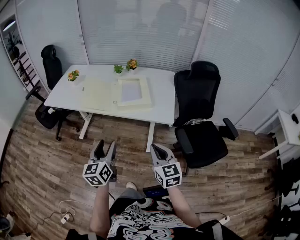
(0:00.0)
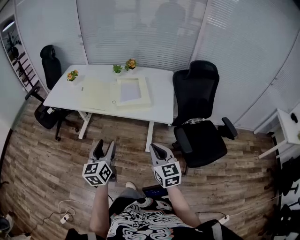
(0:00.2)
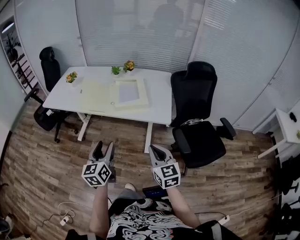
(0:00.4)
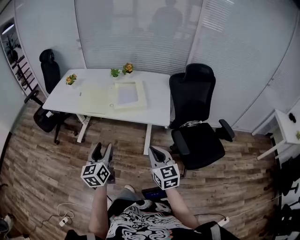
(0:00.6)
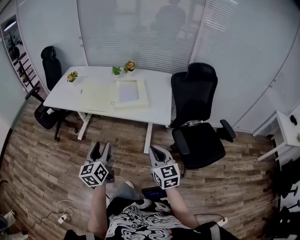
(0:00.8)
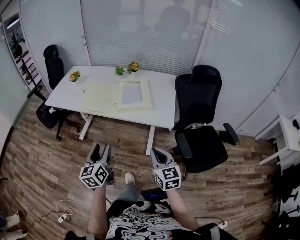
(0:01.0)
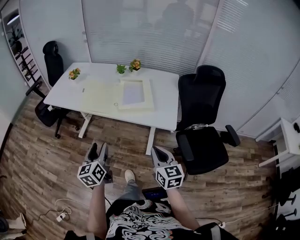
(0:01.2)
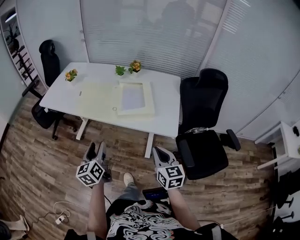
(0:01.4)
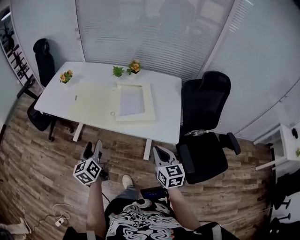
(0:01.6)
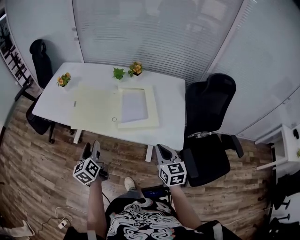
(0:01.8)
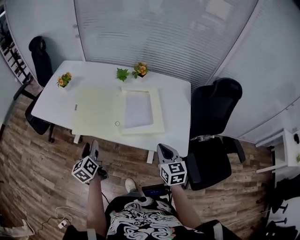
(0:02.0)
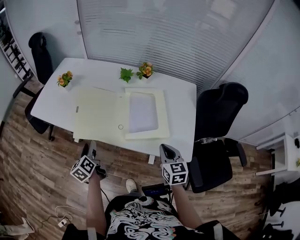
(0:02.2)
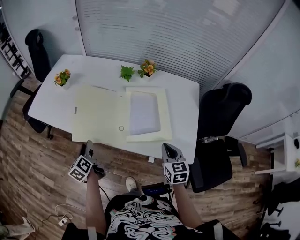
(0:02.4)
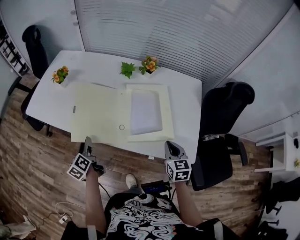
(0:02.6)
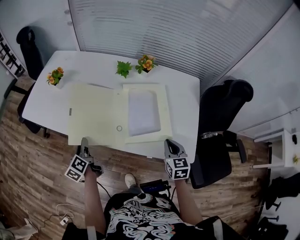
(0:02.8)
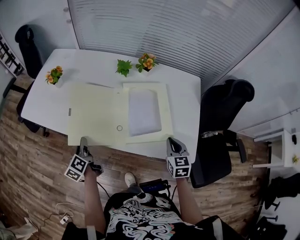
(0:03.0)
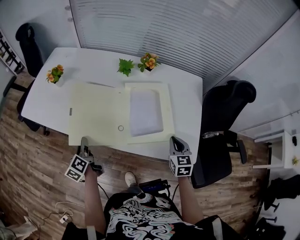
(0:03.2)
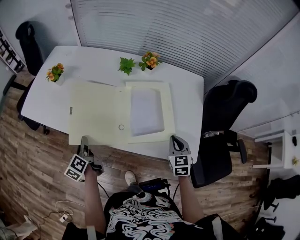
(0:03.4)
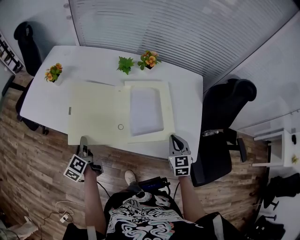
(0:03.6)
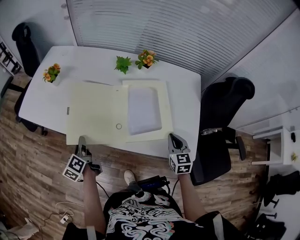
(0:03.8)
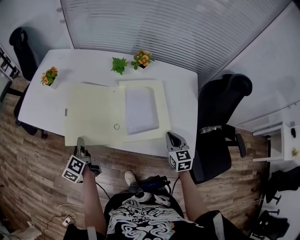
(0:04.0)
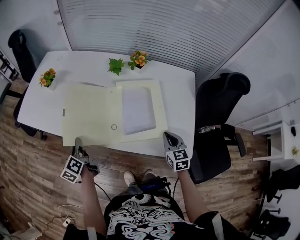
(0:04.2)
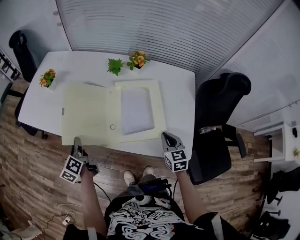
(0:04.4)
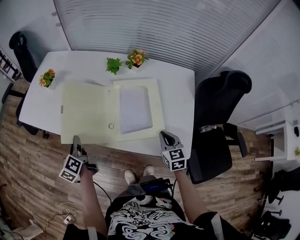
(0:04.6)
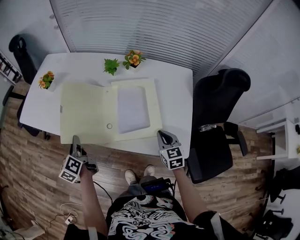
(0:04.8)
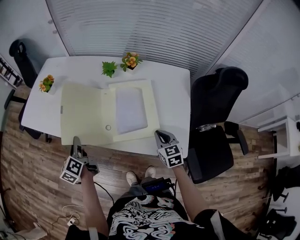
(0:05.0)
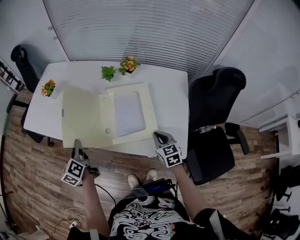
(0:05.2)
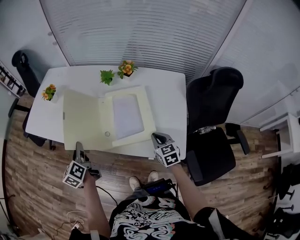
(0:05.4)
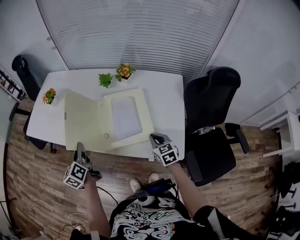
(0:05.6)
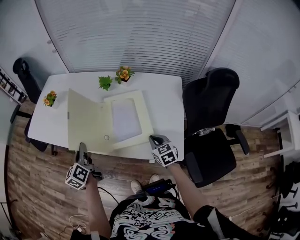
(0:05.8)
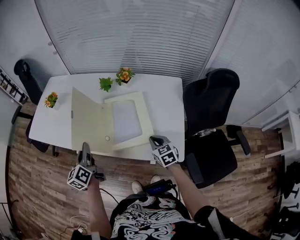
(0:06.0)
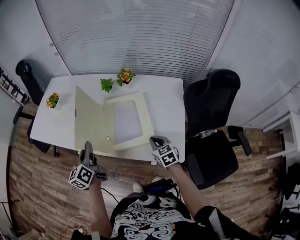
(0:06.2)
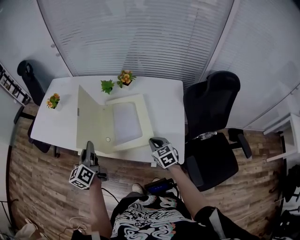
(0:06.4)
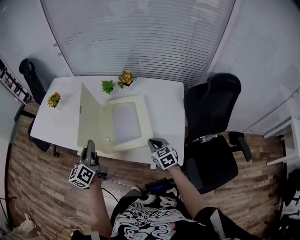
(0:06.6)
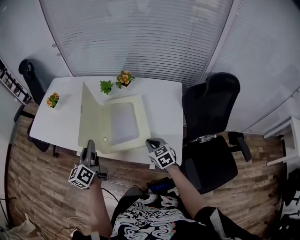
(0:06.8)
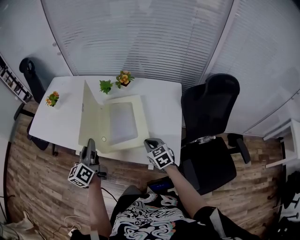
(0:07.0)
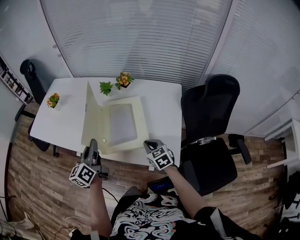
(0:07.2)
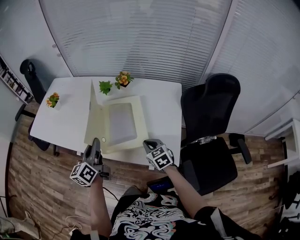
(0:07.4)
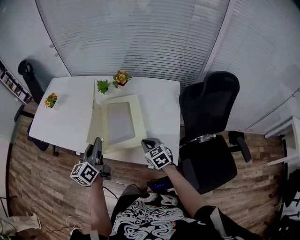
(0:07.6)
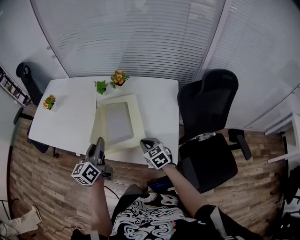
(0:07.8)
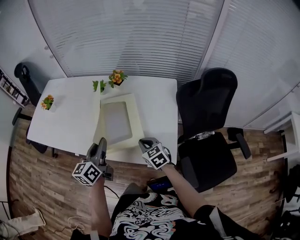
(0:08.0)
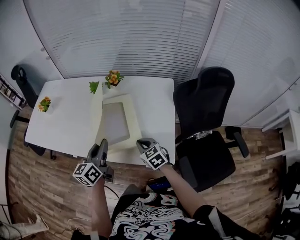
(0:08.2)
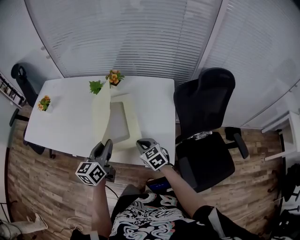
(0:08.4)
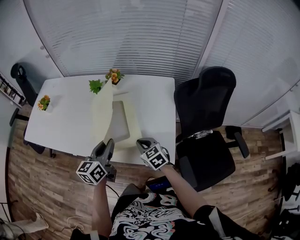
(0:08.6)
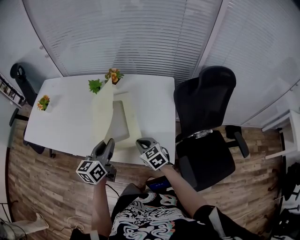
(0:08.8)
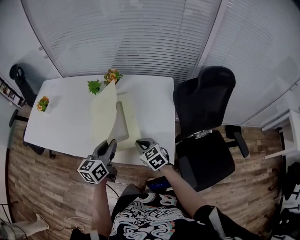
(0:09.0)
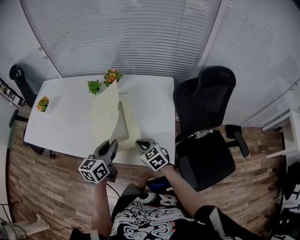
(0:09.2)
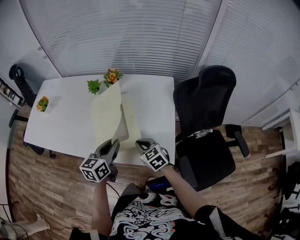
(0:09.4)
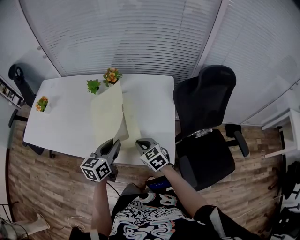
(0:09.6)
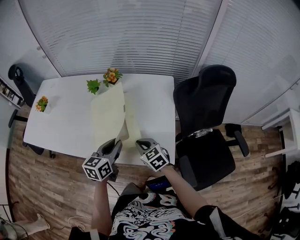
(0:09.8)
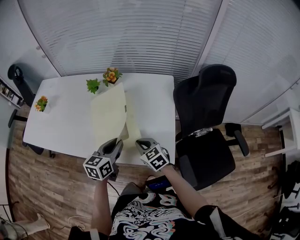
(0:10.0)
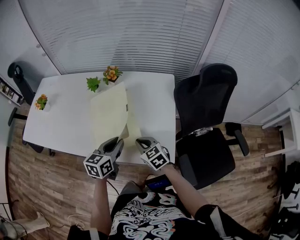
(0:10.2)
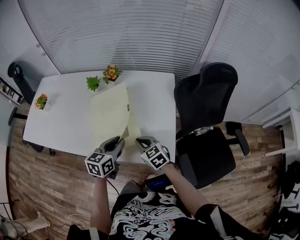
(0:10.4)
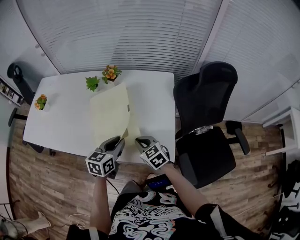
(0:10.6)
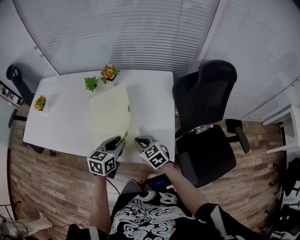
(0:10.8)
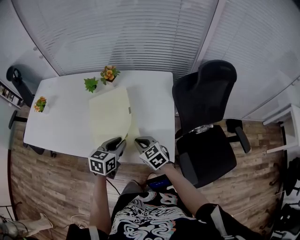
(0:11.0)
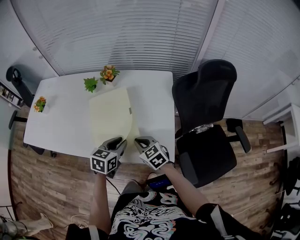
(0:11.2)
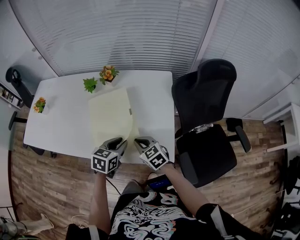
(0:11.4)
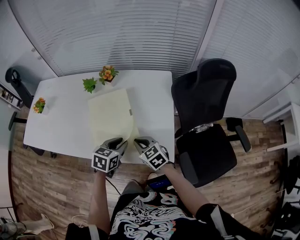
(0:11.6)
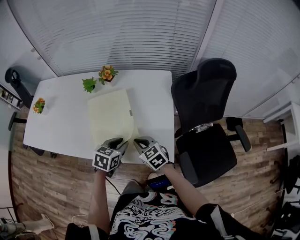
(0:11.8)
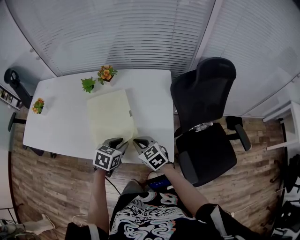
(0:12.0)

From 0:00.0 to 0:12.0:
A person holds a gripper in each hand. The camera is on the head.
From 0:00.0 to 0:01.6: Both grippers move forward, approximately 15 cm.
From 0:01.6 to 0:03.0: The right gripper shifts roughly 20 cm forward and downward. Meanwhile the left gripper heads forward, downward and to the left, covering about 25 cm, swivels roughly 30 degrees, and closes.
From 0:03.0 to 0:04.4: There are only small adjustments of the grippers.
From 0:04.4 to 0:06.0: The left gripper shifts roughly 15 cm upward and to the right.
From 0:06.0 to 0:07.6: The left gripper goes some 10 cm to the right.
From 0:07.6 to 0:09.0: The left gripper is displaced to the right by some 10 cm, and swivels some 20 degrees.
From 0:09.0 to 0:10.4: The left gripper moves roughly 5 cm.
From 0:10.4 to 0:12.0: The left gripper changes place by approximately 5 cm, and turns by approximately 30 degrees.

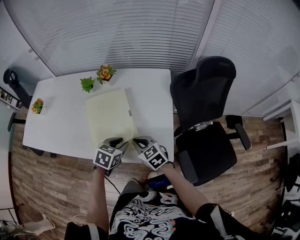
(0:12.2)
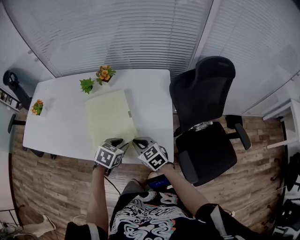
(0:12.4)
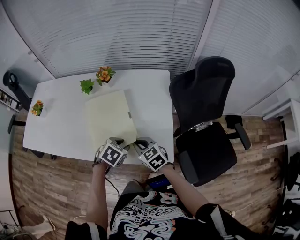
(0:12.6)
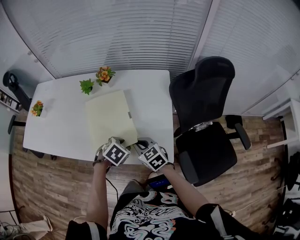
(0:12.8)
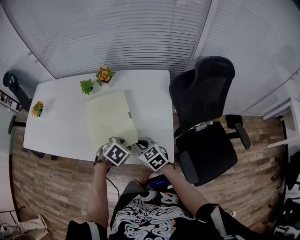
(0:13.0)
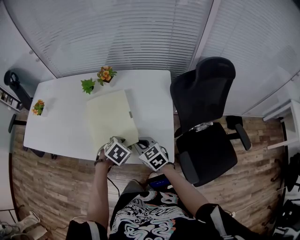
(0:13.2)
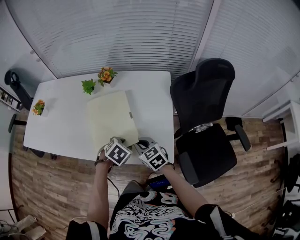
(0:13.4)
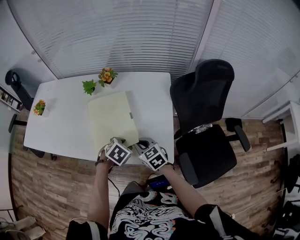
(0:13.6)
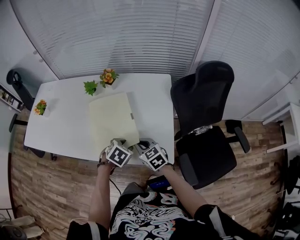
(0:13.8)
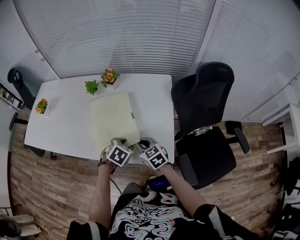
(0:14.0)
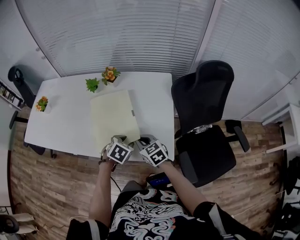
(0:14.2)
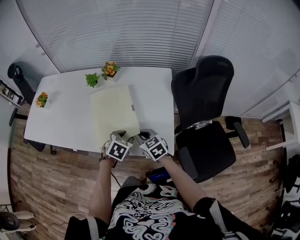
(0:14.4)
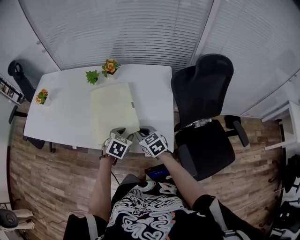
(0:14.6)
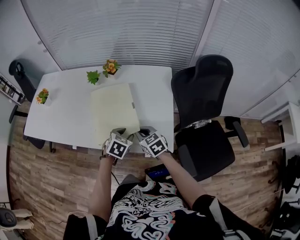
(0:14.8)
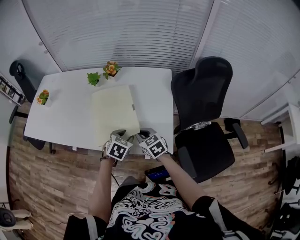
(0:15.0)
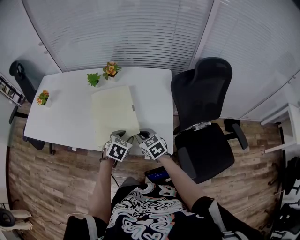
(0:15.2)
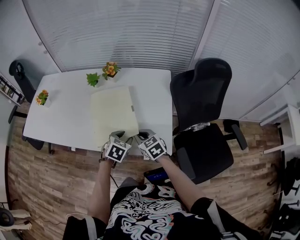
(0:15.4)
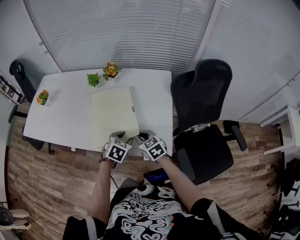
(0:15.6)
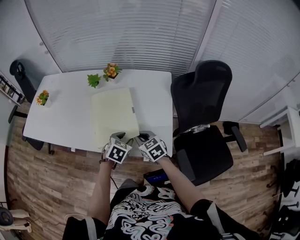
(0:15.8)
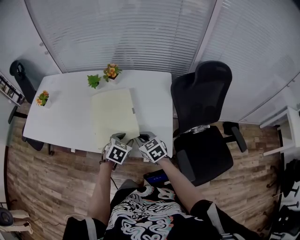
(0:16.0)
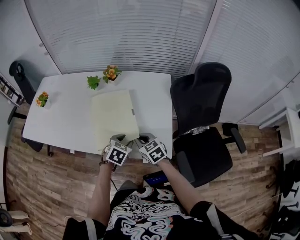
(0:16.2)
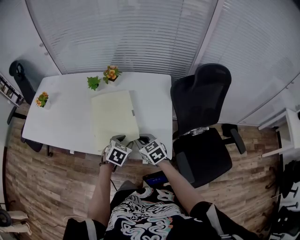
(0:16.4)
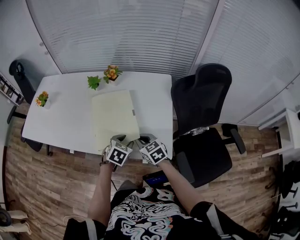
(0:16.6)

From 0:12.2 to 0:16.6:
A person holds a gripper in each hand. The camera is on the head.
From 0:12.2 to 0:13.6: The left gripper turns by about 20 degrees.
From 0:13.6 to 0:15.2: The grippers move only a little.
From 0:15.2 to 0:16.6: Neither gripper changes place.

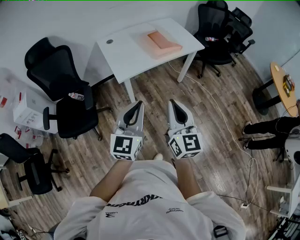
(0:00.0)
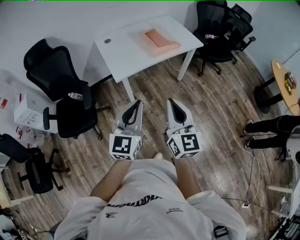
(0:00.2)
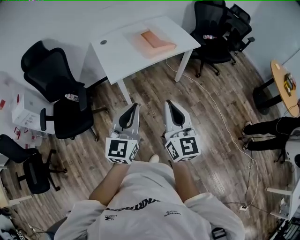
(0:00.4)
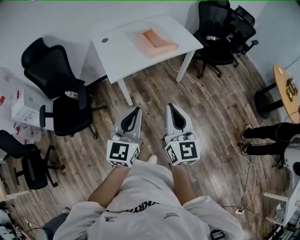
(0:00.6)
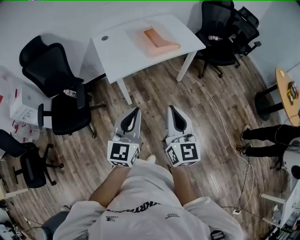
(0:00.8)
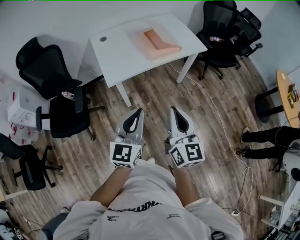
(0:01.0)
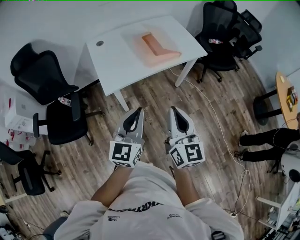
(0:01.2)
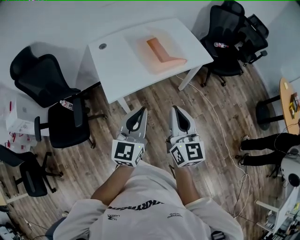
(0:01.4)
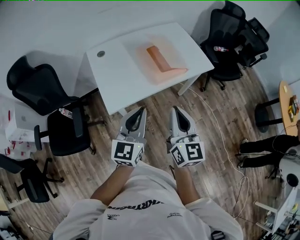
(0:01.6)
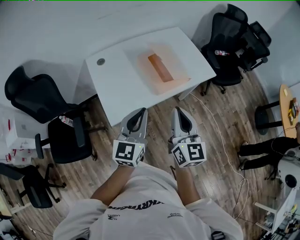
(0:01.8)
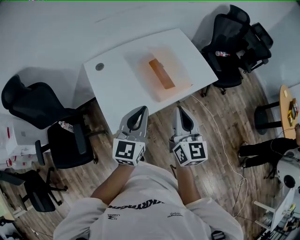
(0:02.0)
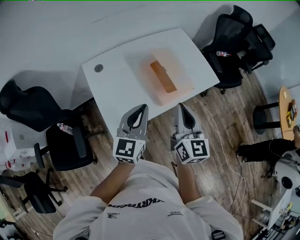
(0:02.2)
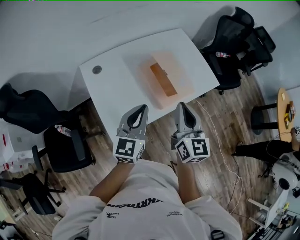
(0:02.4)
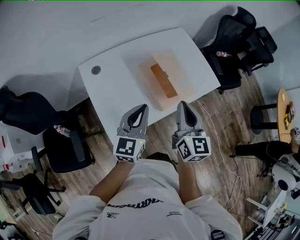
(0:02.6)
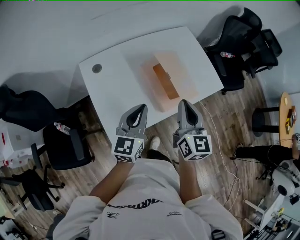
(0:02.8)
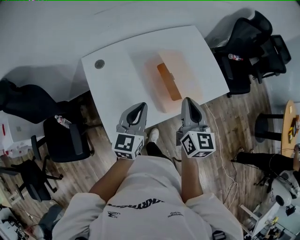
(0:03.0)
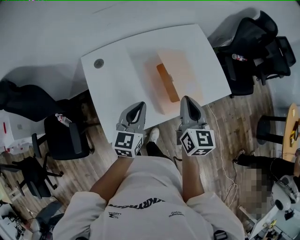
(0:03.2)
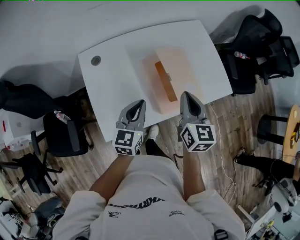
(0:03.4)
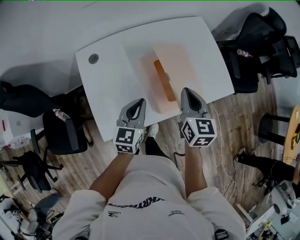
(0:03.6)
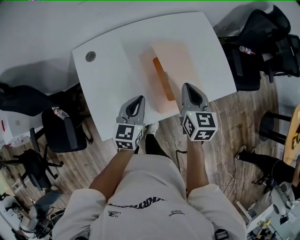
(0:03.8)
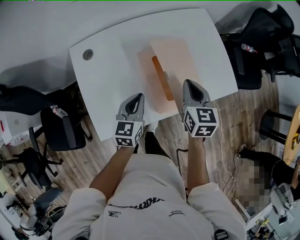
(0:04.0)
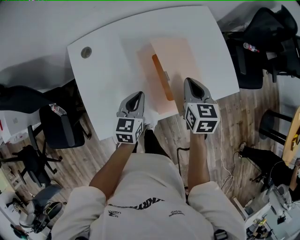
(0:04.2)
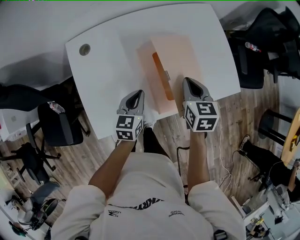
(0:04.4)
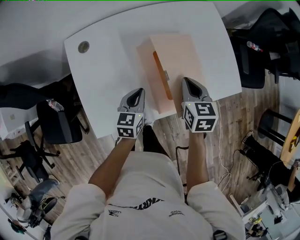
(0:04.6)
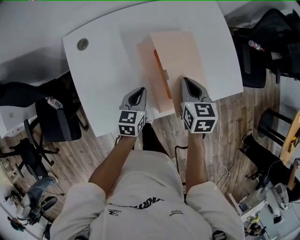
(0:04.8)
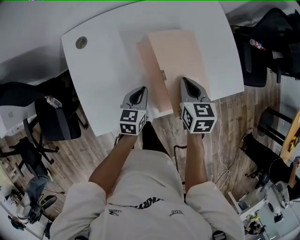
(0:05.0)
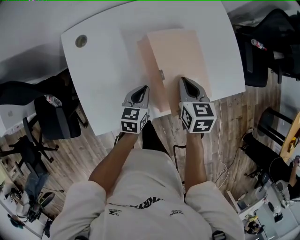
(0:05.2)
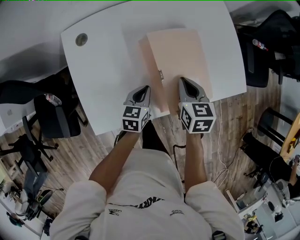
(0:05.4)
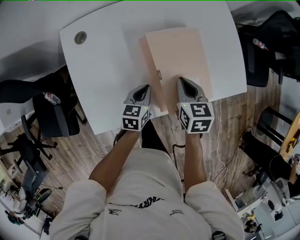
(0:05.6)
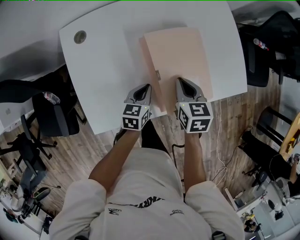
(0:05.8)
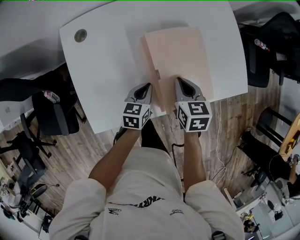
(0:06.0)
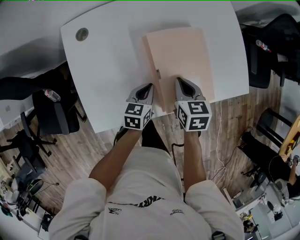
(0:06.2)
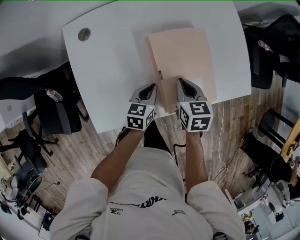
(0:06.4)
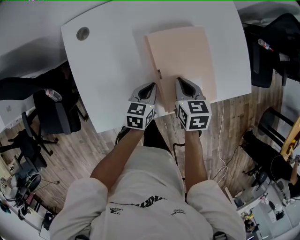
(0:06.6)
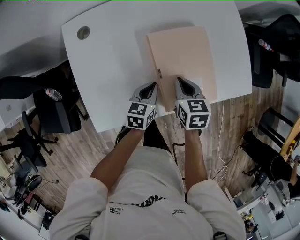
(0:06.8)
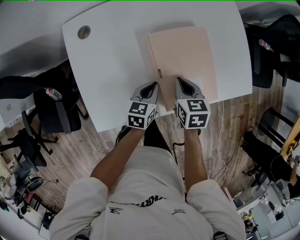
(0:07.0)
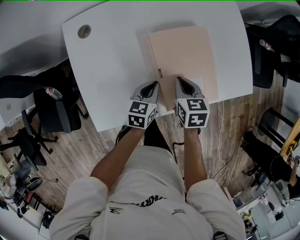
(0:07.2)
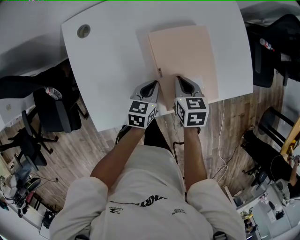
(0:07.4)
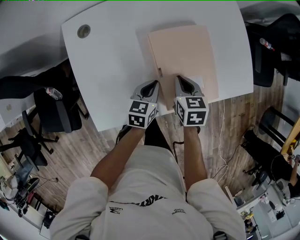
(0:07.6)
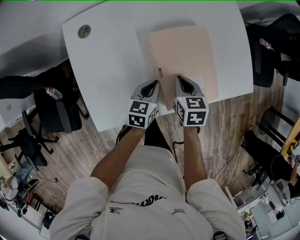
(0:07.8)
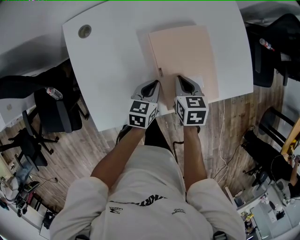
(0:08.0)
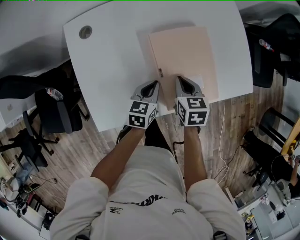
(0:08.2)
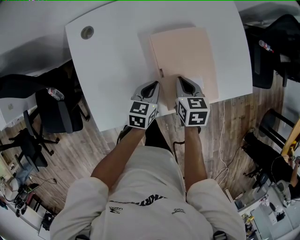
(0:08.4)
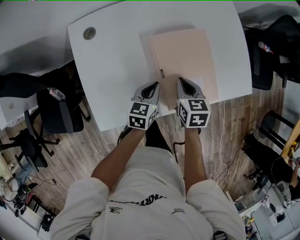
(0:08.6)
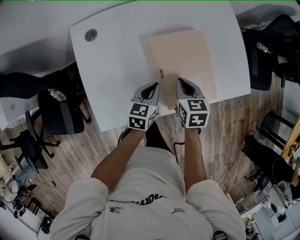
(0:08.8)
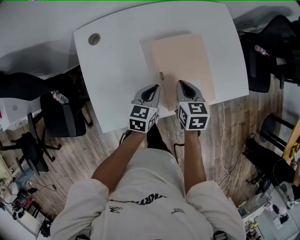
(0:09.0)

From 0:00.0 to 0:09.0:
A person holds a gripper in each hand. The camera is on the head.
From 0:00.0 to 0:01.6: The grippers both shift forward by roughly 30 cm.
From 0:01.6 to 0:03.0: Both grippers move forward, some 30 cm.
From 0:03.0 to 0:04.4: The two grippers go some 20 cm downward and forward. The left gripper swivels approximately 20 degrees, while the right gripper changes its angle by about 30 degrees.
From 0:04.4 to 0:06.0: The two grippers go roughly 10 cm downward.
From 0:06.0 to 0:07.6: There are only small adjustments of the grippers.
From 0:07.6 to 0:09.0: The two grippers go about 5 cm upward.
